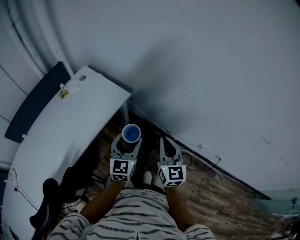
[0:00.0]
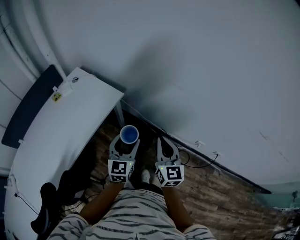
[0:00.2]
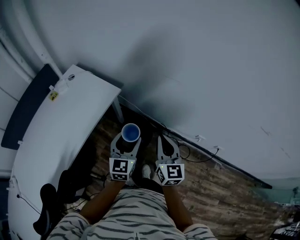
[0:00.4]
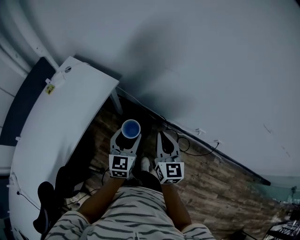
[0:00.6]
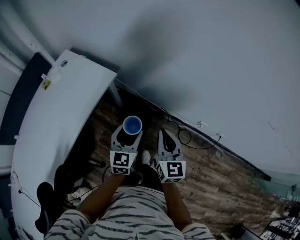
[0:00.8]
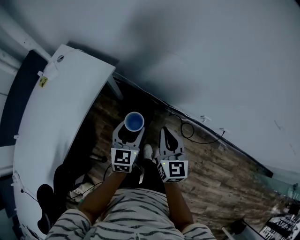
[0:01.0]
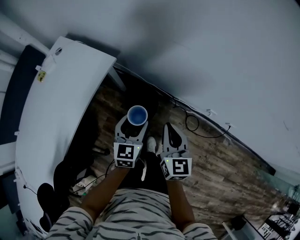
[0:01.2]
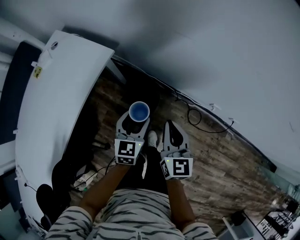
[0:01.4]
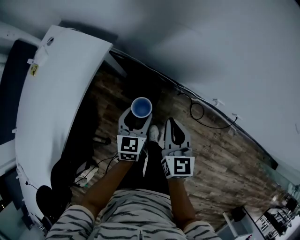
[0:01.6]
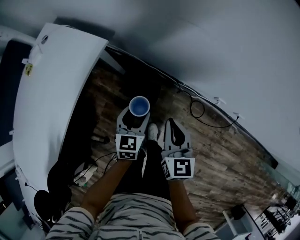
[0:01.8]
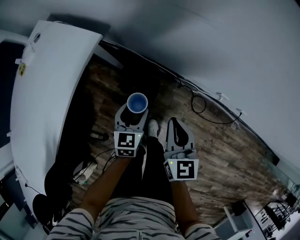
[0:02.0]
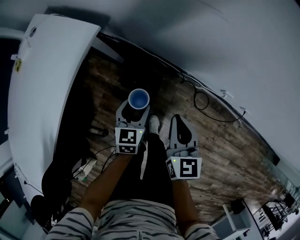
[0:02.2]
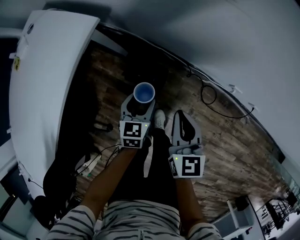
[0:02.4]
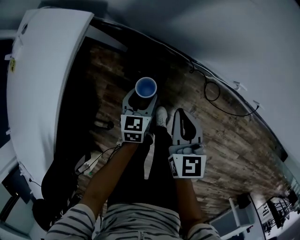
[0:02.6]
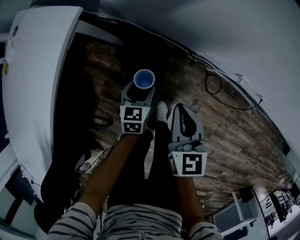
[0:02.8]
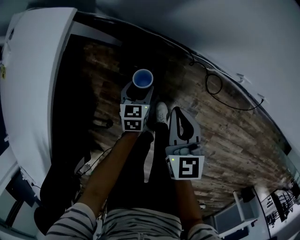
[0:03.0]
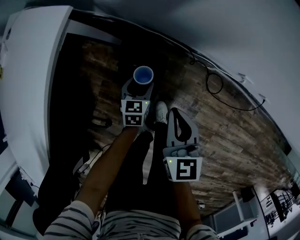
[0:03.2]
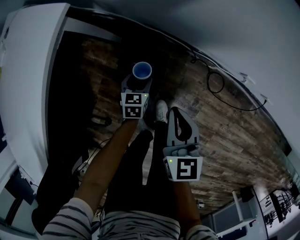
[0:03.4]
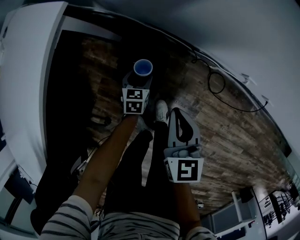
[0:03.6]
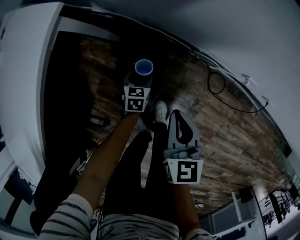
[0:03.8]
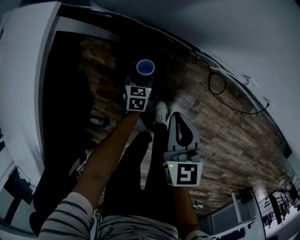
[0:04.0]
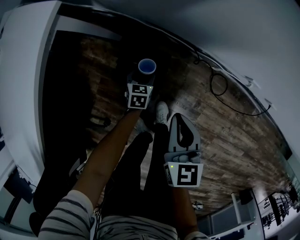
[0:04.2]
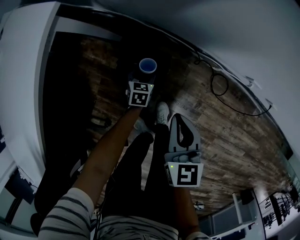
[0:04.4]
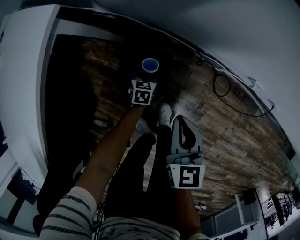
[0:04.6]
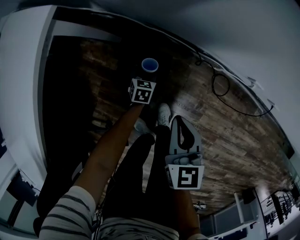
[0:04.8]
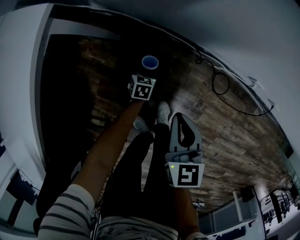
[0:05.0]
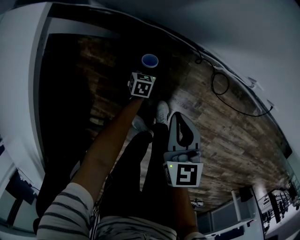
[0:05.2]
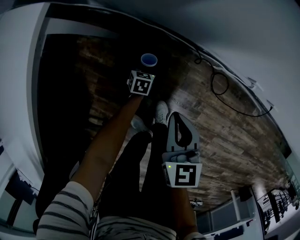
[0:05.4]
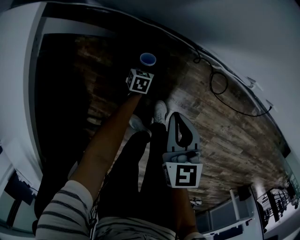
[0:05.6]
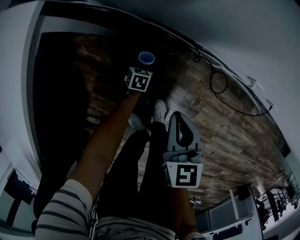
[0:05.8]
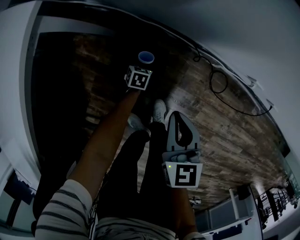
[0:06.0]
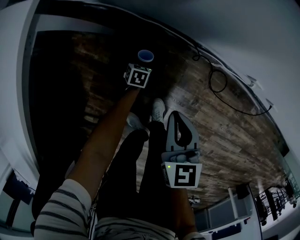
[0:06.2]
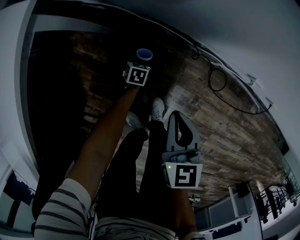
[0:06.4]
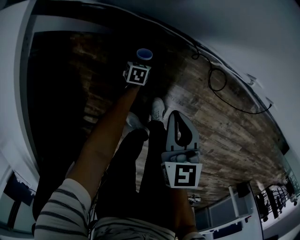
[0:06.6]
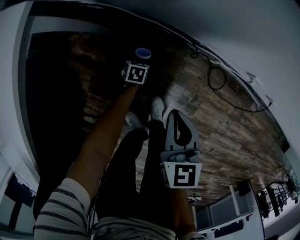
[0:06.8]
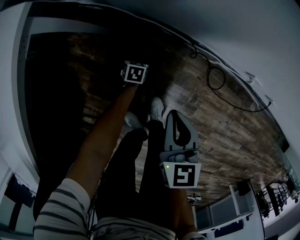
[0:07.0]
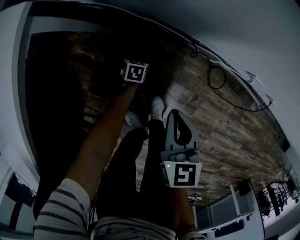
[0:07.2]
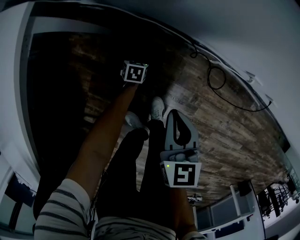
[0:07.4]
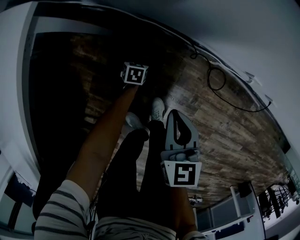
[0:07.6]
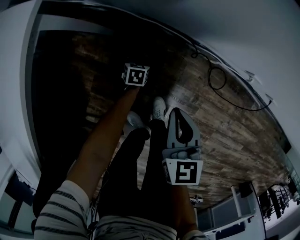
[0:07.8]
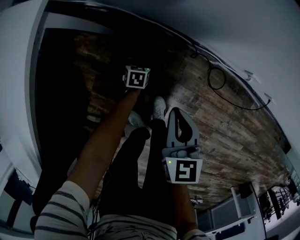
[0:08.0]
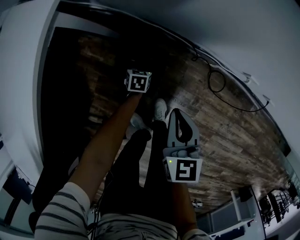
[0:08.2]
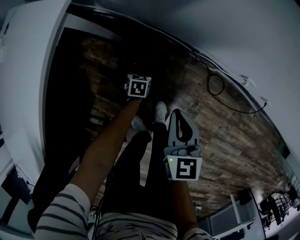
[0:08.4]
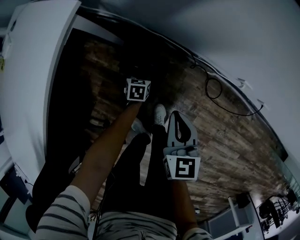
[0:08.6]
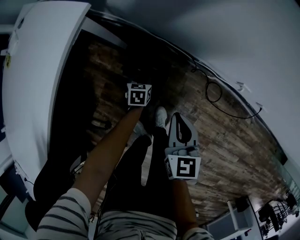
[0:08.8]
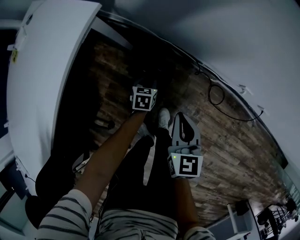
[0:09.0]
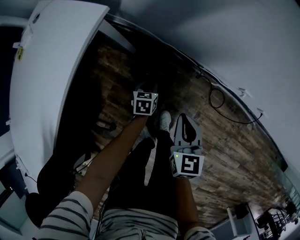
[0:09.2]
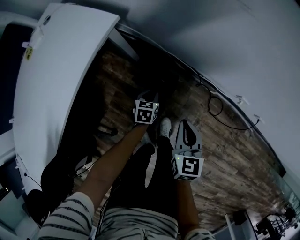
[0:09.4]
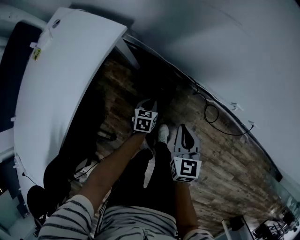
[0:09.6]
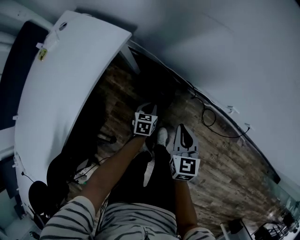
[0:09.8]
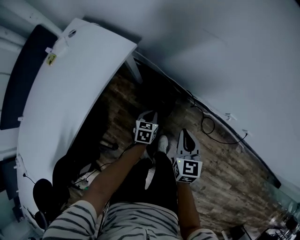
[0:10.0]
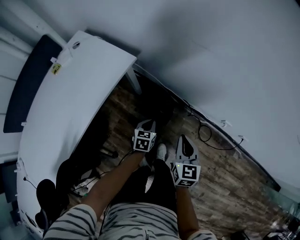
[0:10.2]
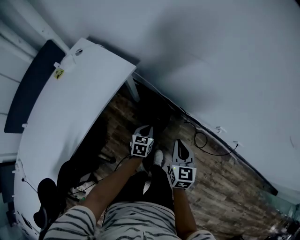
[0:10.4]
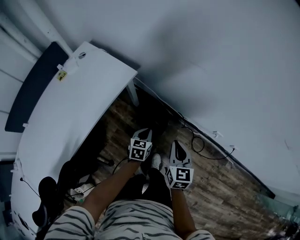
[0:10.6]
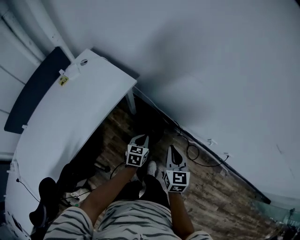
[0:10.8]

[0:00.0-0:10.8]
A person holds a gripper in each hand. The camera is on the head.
0:00.0 to 0:01.6: The right gripper is displaced downward by about 15 cm, while the left gripper heads downward and to the right, covering about 20 cm, and turns by some 20 degrees.
0:01.6 to 0:03.0: The left gripper goes about 30 cm downward; the right gripper shifts approximately 20 cm downward.
0:03.0 to 0:04.6: The right gripper is displaced downward by roughly 5 cm. The left gripper is displaced downward by some 20 cm.
0:04.6 to 0:06.2: The left gripper heads downward, covering about 10 cm.
0:06.2 to 0:07.8: The grippers move only a little.
0:07.8 to 0:09.2: The left gripper moves upward, some 20 cm, and closes up. The right gripper heads upward, covering some 10 cm.
0:09.2 to 0:10.8: Both grippers travel together upward, roughly 25 cm.

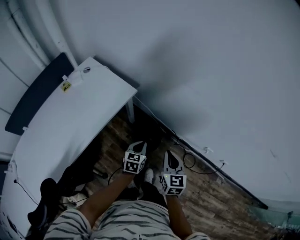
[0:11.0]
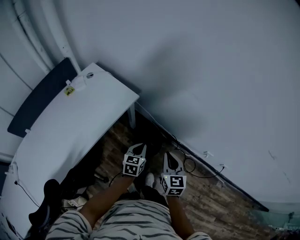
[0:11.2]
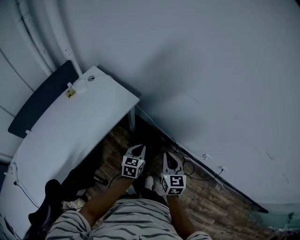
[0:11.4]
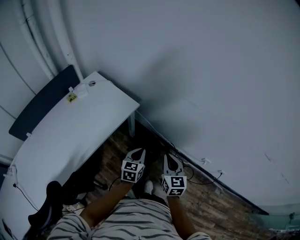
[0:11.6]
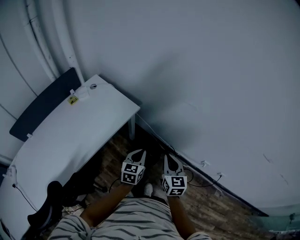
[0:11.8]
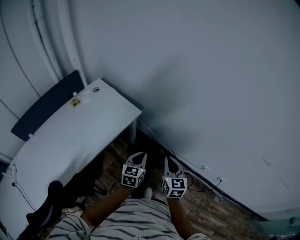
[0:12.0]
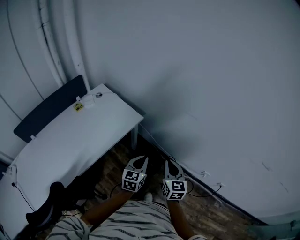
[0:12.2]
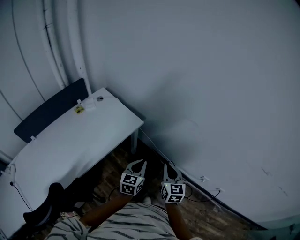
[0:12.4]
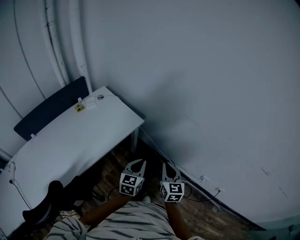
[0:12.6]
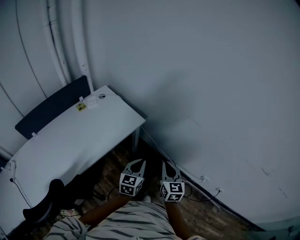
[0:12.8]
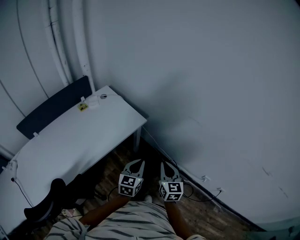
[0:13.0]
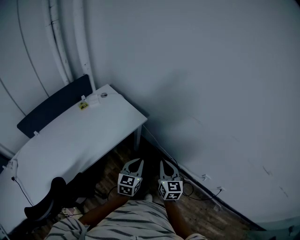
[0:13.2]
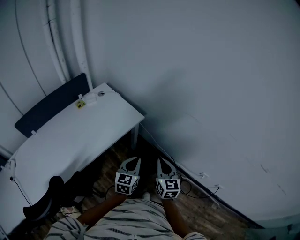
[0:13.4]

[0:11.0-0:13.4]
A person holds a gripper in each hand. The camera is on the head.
0:11.0 to 0:12.2: The right gripper heads upward, covering approximately 5 cm. Meanwhile the left gripper goes about 15 cm upward.
0:12.2 to 0:13.4: The grippers stay close to where they were, moving slightly.

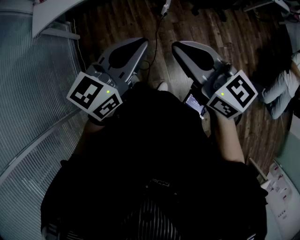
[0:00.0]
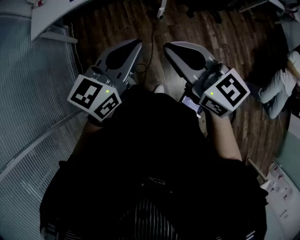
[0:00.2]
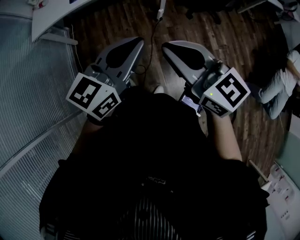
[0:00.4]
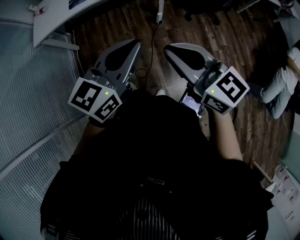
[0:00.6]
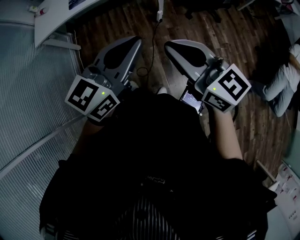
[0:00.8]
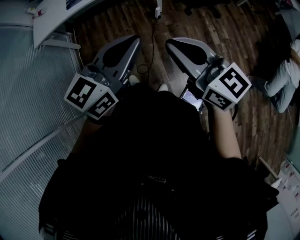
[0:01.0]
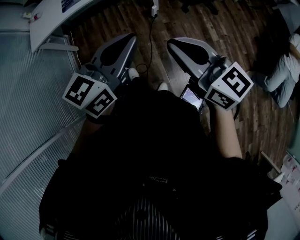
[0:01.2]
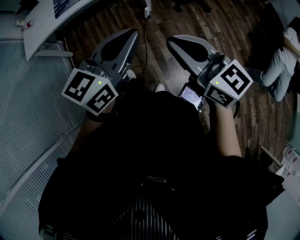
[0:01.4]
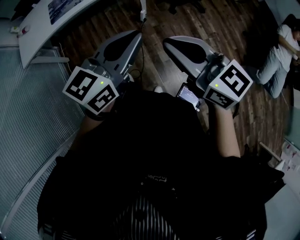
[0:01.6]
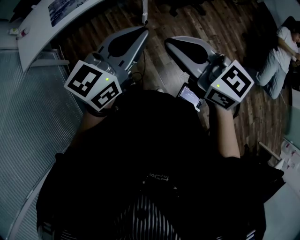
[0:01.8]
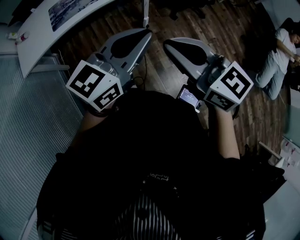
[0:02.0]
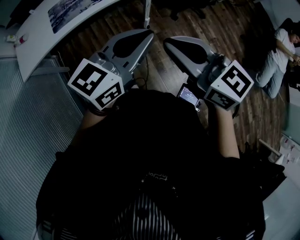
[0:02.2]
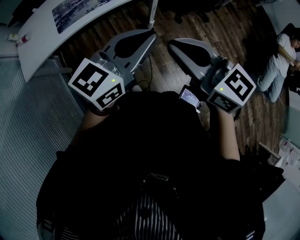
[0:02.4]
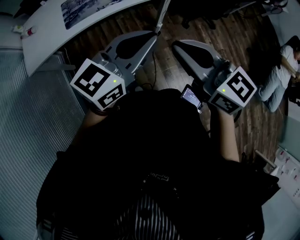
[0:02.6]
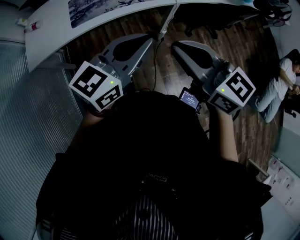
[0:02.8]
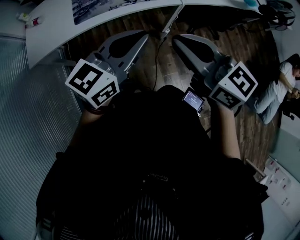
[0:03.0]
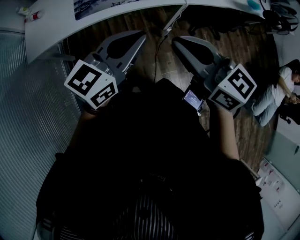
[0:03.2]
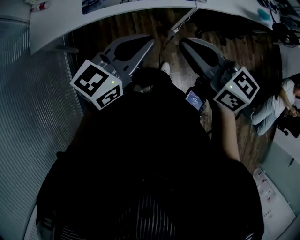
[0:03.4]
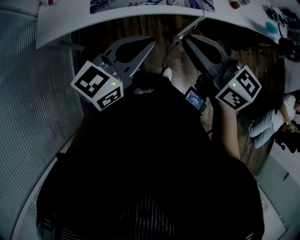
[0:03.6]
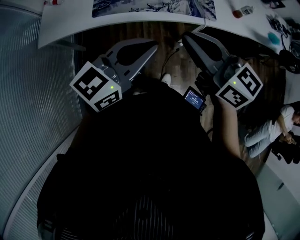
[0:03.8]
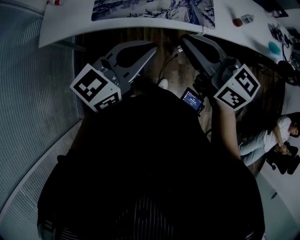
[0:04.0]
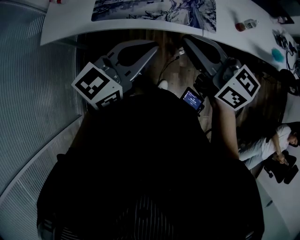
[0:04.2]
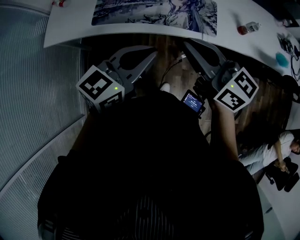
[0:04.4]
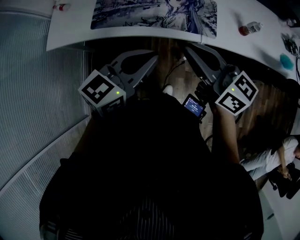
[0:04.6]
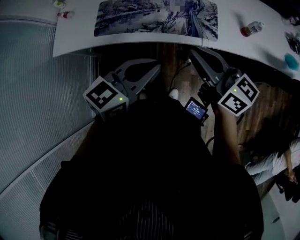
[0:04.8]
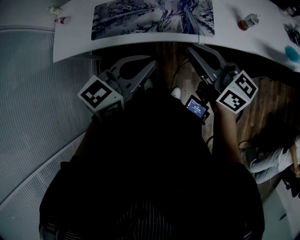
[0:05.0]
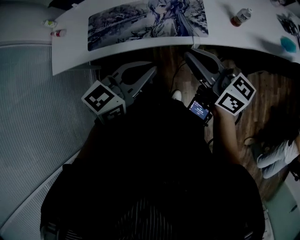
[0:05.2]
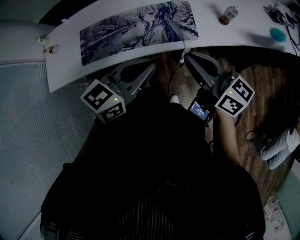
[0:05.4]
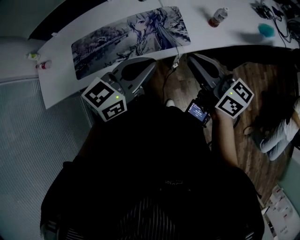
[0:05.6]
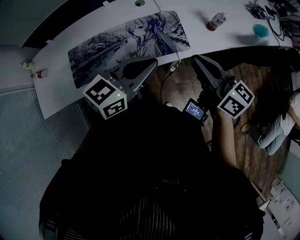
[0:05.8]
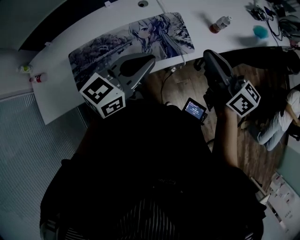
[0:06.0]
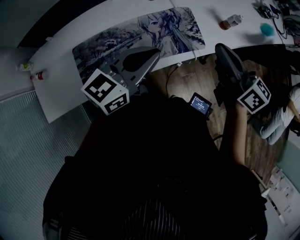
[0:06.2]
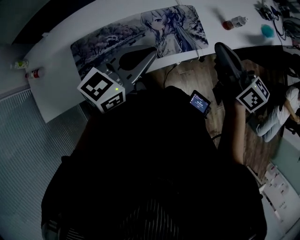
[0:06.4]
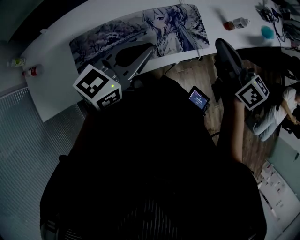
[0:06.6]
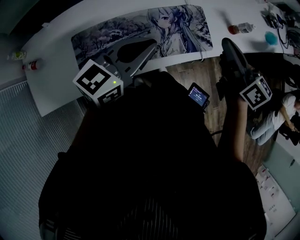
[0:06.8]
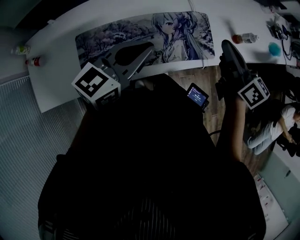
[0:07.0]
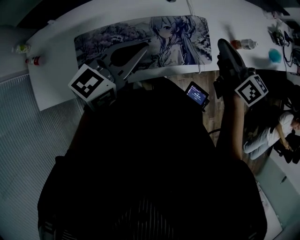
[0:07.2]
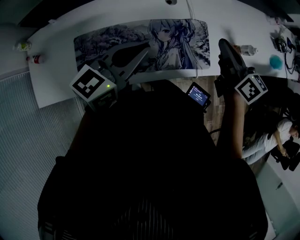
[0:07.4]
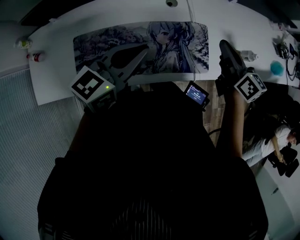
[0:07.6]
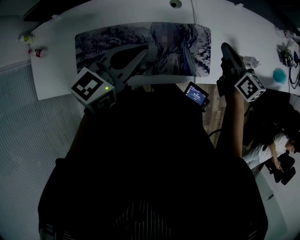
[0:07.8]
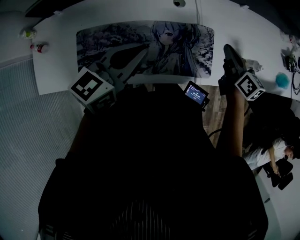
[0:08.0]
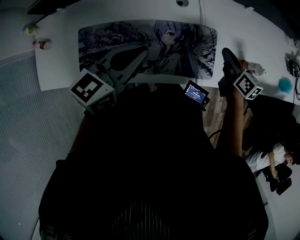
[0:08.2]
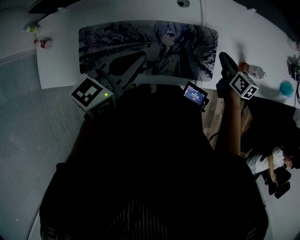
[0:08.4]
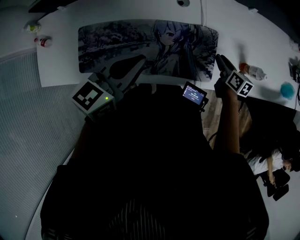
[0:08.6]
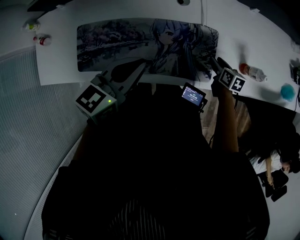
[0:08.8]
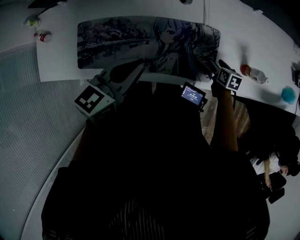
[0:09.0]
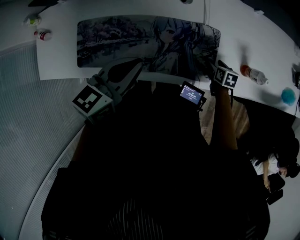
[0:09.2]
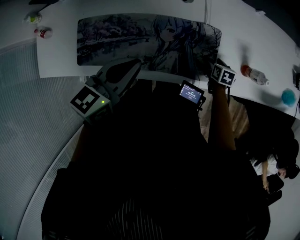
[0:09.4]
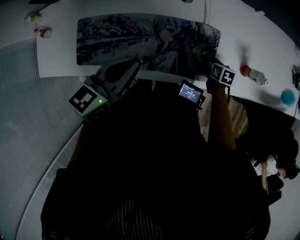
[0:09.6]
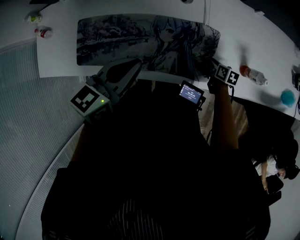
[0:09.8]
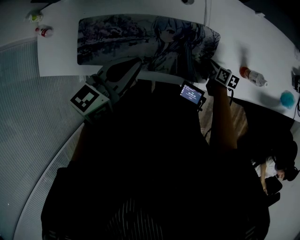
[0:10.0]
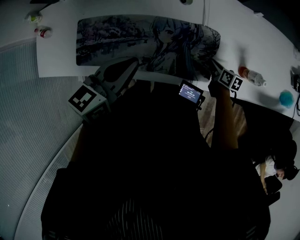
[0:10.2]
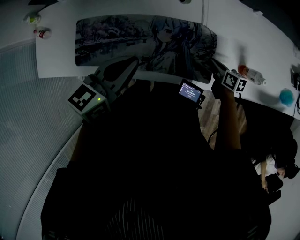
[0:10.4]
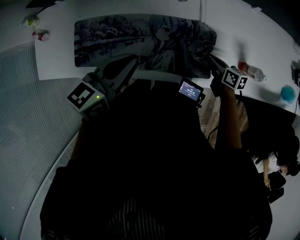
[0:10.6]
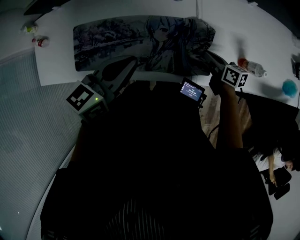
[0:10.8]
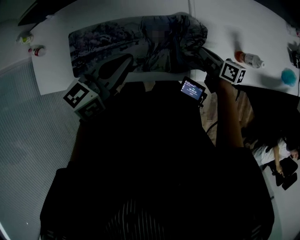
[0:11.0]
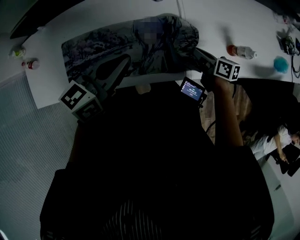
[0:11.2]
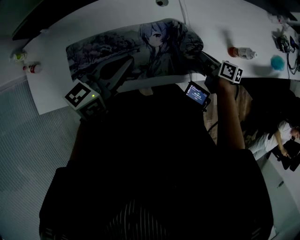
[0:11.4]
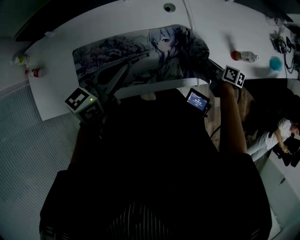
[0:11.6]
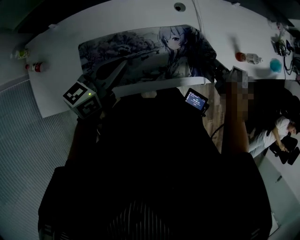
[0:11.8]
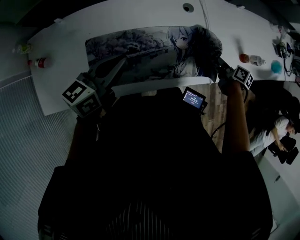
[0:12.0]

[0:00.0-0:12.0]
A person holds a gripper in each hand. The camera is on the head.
0:00.0 to 0:01.6: Both grippers travel together to the right, some 5 cm.
0:01.6 to 0:03.0: The grippers both shift to the left and forward by approximately 30 cm.
0:03.0 to 0:04.4: Both grippers travel together forward and to the right, approximately 20 cm. The right gripper turns by some 20 degrees.
0:04.4 to 0:06.0: The right gripper ends up roughly 20 cm from where it was, and turns by about 40 degrees; the left gripper moves some 20 cm, and rotates approximately 20 degrees.
0:06.0 to 0:07.6: The right gripper goes approximately 20 cm forward. Meanwhile the left gripper shifts some 15 cm forward and to the left.
0:07.6 to 0:09.0: The left gripper heads downward, covering about 5 cm. The right gripper shifts approximately 30 cm downward, tilts its fingers about 40 degrees downward, and opens up.
0:09.0 to 0:10.4: The right gripper closes its fingers.
0:10.4 to 0:12.0: The right gripper heads to the left and upward, covering some 15 cm, and rotates roughly 30 degrees. Meanwhile the left gripper heads to the left, covering roughly 25 cm.
